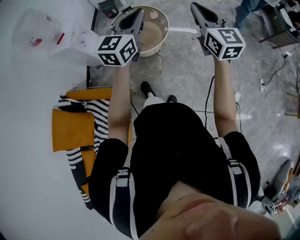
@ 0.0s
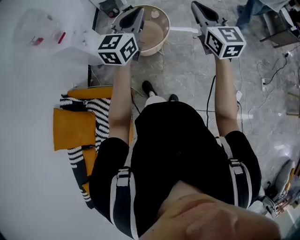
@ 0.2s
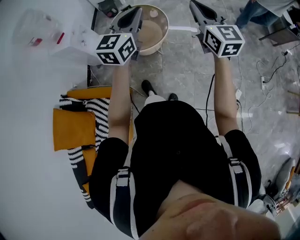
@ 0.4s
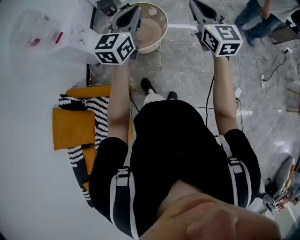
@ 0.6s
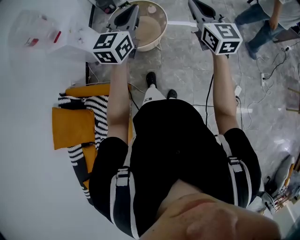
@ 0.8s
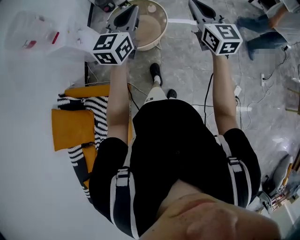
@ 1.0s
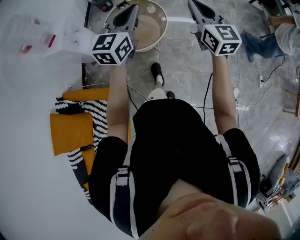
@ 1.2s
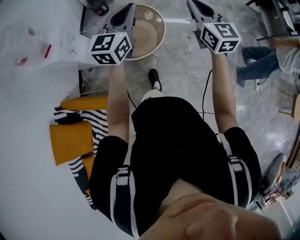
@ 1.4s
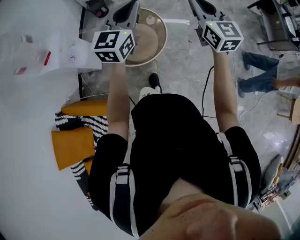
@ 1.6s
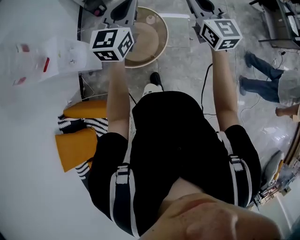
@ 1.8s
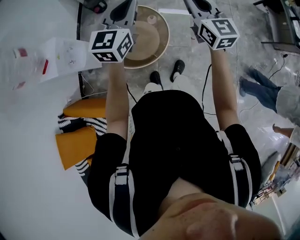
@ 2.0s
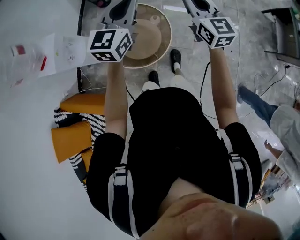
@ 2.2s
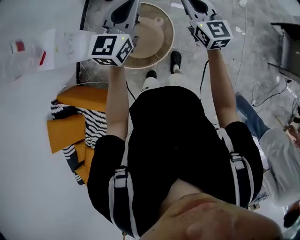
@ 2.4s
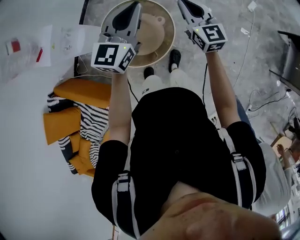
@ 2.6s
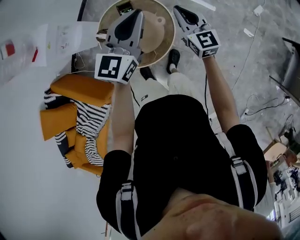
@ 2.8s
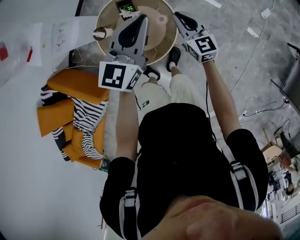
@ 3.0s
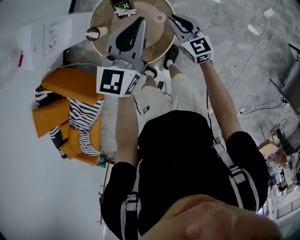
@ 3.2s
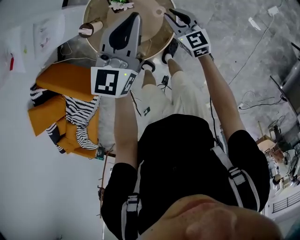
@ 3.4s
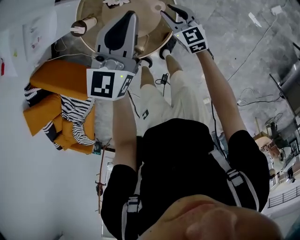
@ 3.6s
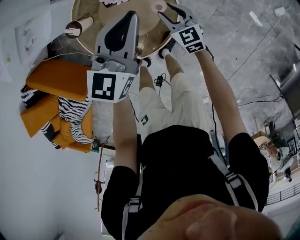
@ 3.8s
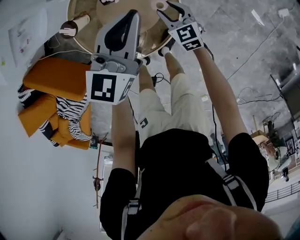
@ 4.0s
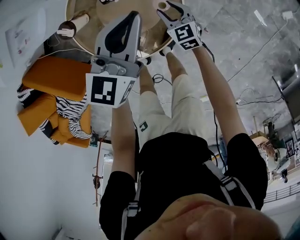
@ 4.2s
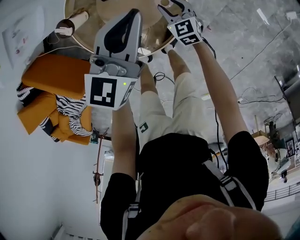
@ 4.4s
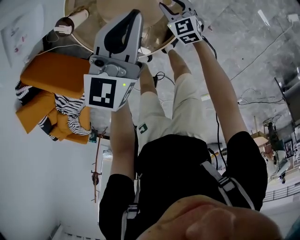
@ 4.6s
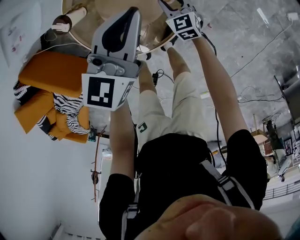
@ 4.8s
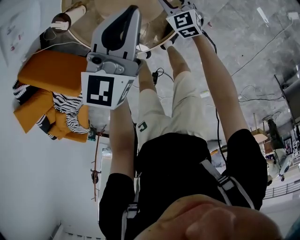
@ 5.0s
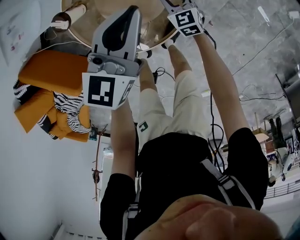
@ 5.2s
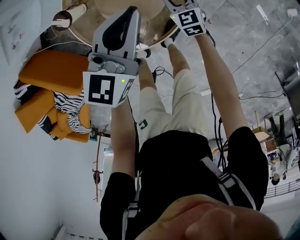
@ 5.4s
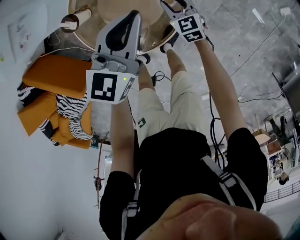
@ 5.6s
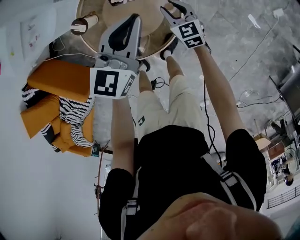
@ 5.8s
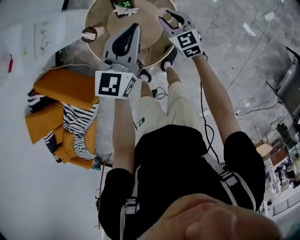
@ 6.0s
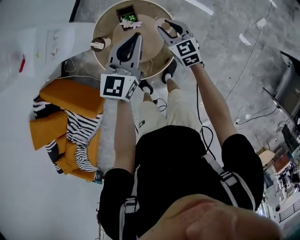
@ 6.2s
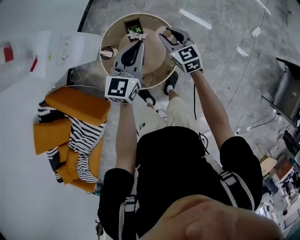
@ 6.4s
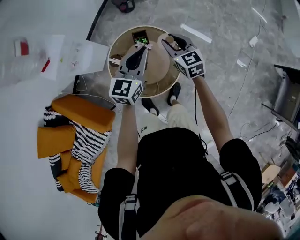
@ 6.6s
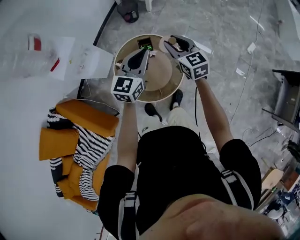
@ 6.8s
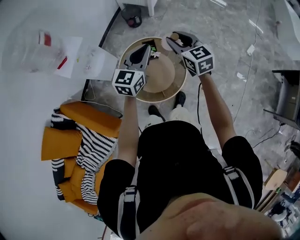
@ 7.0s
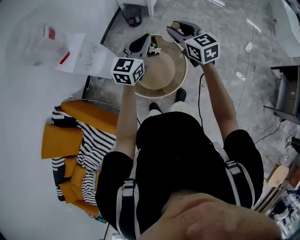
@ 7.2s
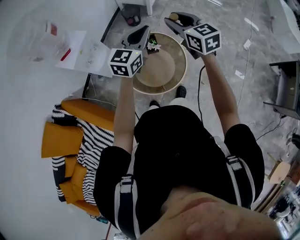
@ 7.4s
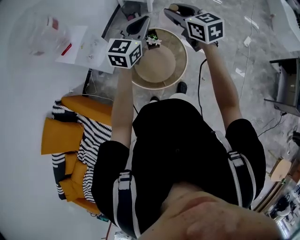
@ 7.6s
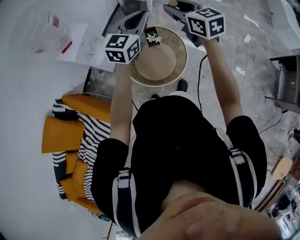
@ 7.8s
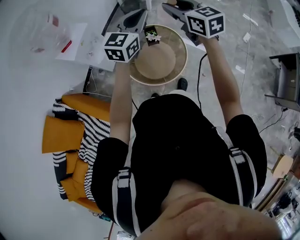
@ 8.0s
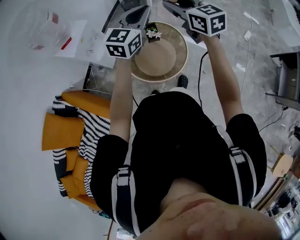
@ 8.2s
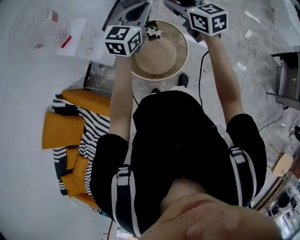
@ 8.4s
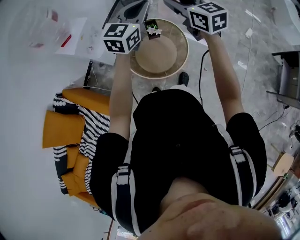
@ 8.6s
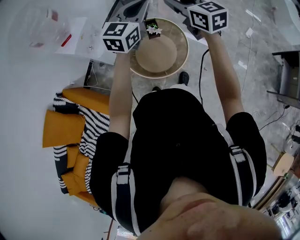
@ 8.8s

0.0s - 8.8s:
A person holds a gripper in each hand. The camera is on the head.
0.0s - 1.4s: The grippers both shift forward by approximately 20 cm.
1.4s - 3.0s: The left gripper changes place by about 40 cm, and swivels roughly 20 degrees. Meanwhile the right gripper moves about 50 cm, and rotates about 40 degrees.
3.0s - 4.4s: Both grippers move downward, some 30 cm. The right gripper turns by some 30 degrees, and opens up.
4.4s - 5.8s: The right gripper shifts roughly 10 cm upward. Meanwhile the left gripper shifts some 5 cm upward.
5.8s - 7.4s: The right gripper travels upward by about 50 cm. Meanwhile the left gripper travels upward and to the left by approximately 35 cm.
7.4s - 8.8s: The right gripper changes place by some 5 cm. The left gripper moves upward, approximately 5 cm.

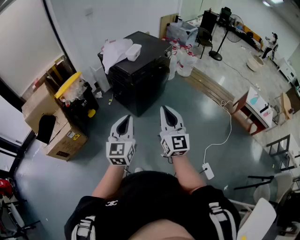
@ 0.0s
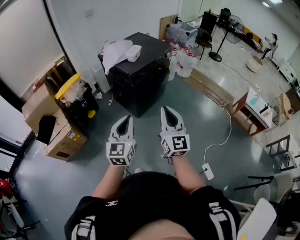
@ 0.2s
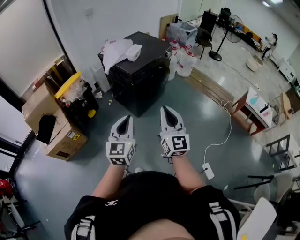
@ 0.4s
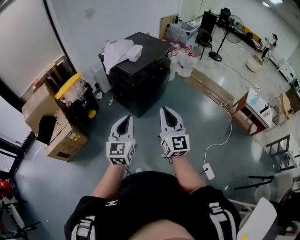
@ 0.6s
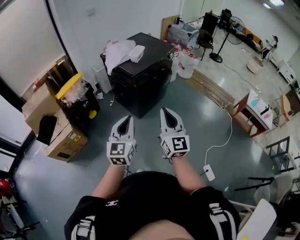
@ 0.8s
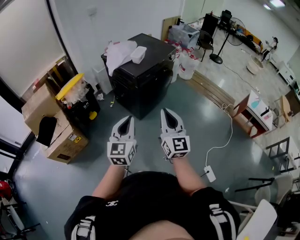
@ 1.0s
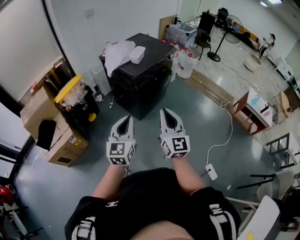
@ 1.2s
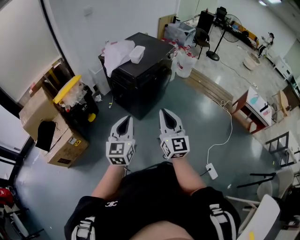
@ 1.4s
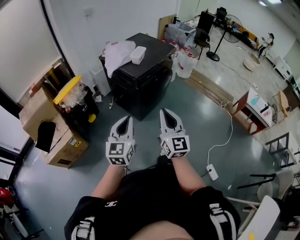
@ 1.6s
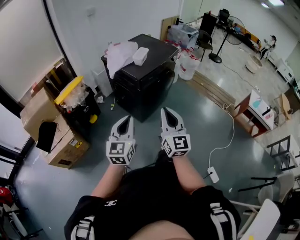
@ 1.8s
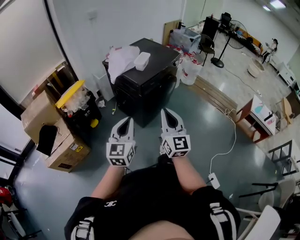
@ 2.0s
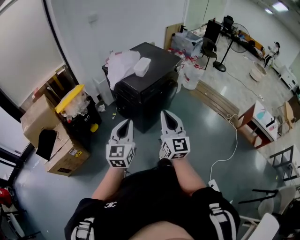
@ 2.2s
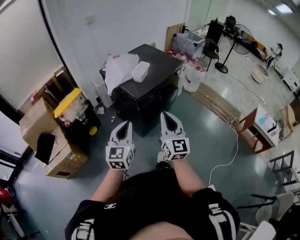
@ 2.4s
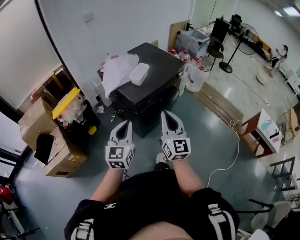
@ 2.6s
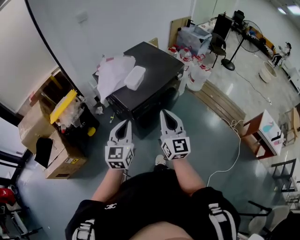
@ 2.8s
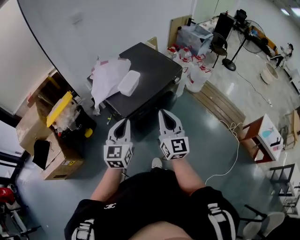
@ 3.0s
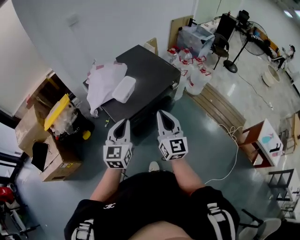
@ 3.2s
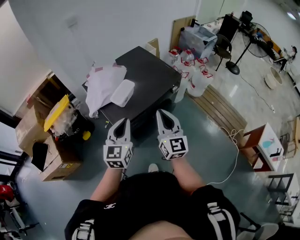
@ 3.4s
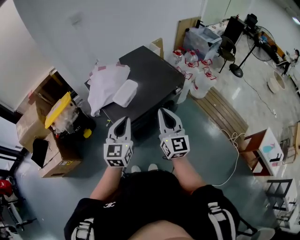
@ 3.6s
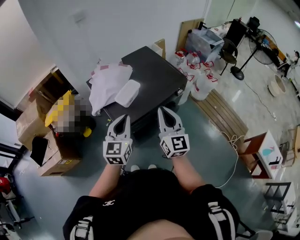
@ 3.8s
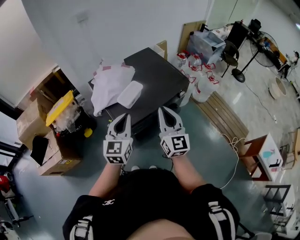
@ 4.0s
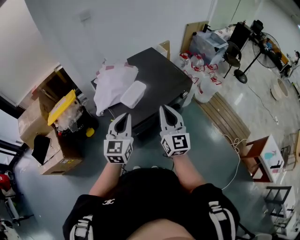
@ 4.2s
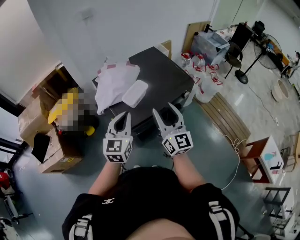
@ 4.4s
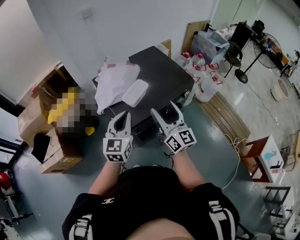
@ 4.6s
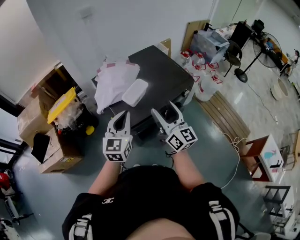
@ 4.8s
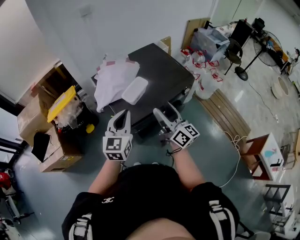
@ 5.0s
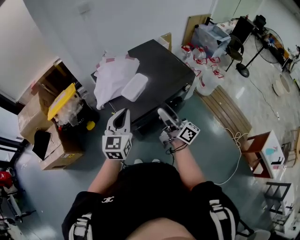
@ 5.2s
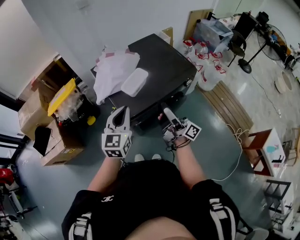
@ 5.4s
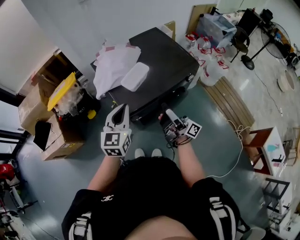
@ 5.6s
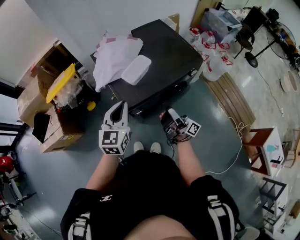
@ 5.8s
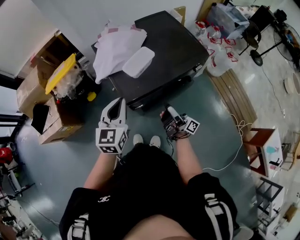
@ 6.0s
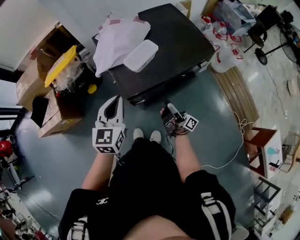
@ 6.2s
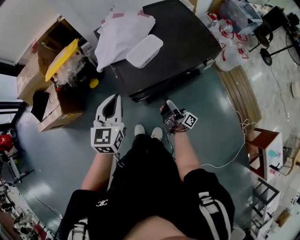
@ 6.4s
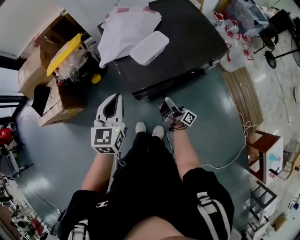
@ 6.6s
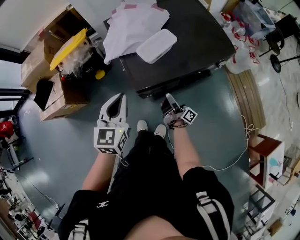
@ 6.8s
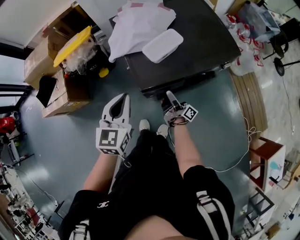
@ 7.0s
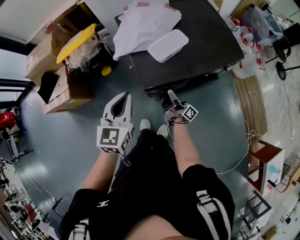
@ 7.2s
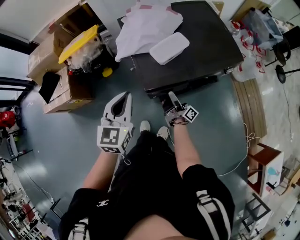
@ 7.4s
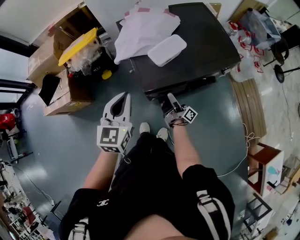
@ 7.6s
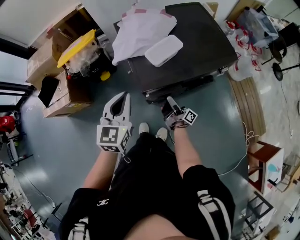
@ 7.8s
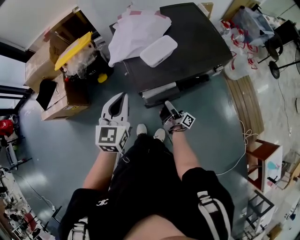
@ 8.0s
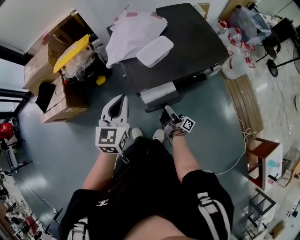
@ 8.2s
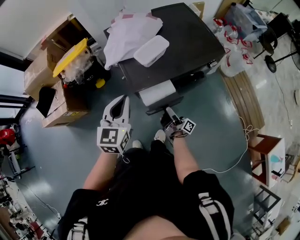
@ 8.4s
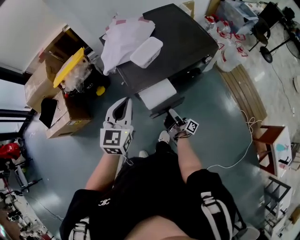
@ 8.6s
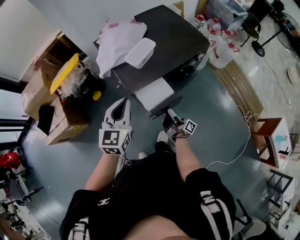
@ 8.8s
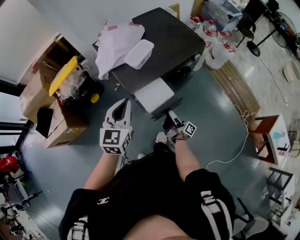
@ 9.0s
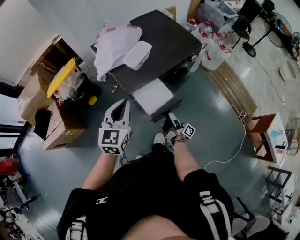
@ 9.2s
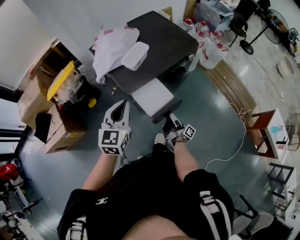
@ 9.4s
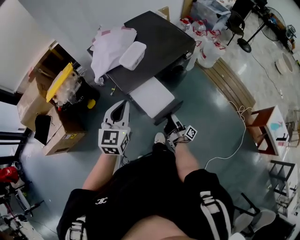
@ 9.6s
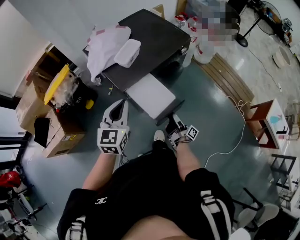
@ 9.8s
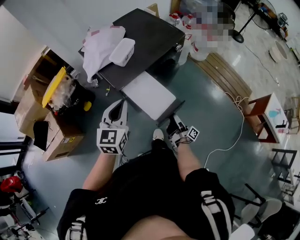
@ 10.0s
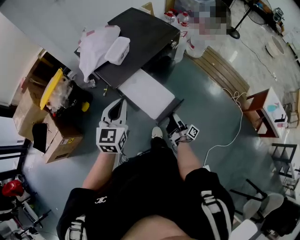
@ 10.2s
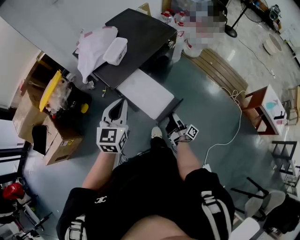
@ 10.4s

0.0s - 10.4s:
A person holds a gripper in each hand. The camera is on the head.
0.0s - 1.4s: Both grippers travel together to the left, approximately 5 cm.
1.4s - 3.0s: The grippers both shift forward by roughly 40 cm.
3.0s - 4.4s: The two grippers go approximately 15 cm forward. The right gripper opens up.
4.4s - 6.0s: The left gripper is displaced downward by some 5 cm. The right gripper is displaced downward by about 20 cm, rolls clockwise, seen from behind, by roughly 80 degrees, and opens its fingers.
6.0s - 7.4s: The right gripper travels downward, to the left and forward by some 15 cm. Meanwhile the left gripper travels to the left by about 5 cm.
7.4s - 9.0s: The left gripper is displaced backward by roughly 5 cm; the right gripper goes some 15 cm backward.
9.0s - 10.4s: The right gripper moves backward and to the right, about 15 cm, while the left gripper shifts some 5 cm backward.

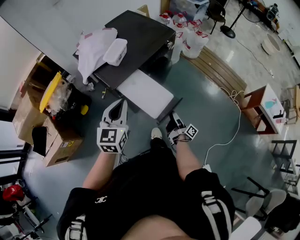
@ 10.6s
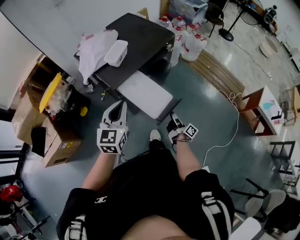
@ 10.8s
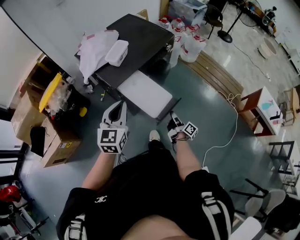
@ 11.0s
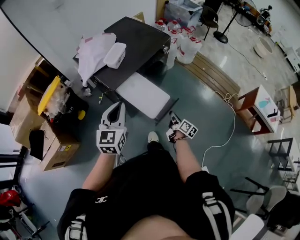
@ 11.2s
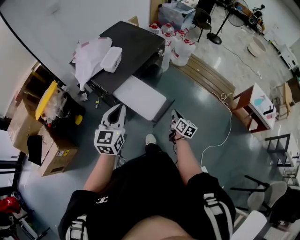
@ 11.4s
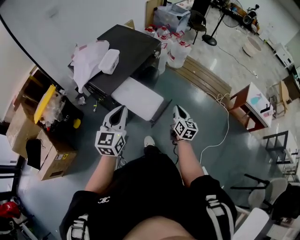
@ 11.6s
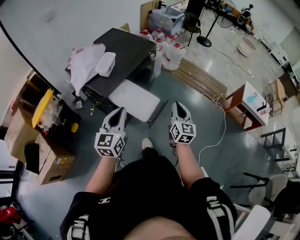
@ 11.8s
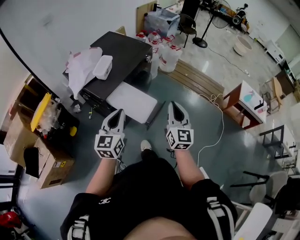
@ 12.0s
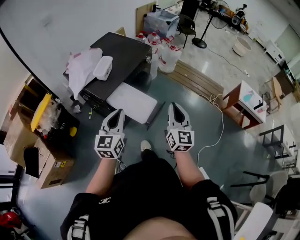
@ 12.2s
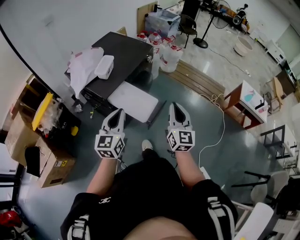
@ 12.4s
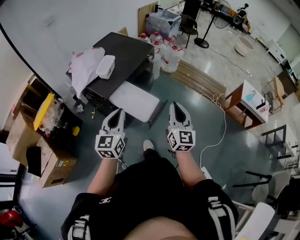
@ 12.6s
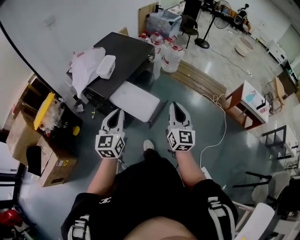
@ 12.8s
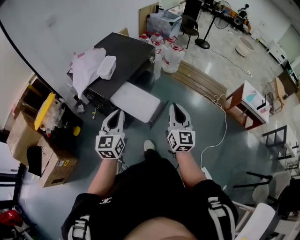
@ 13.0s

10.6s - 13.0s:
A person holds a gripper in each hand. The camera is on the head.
10.6s - 11.8s: The left gripper shifts about 5 cm backward, while the right gripper shifts some 25 cm upward, rolls counterclockwise, seen from behind, by about 80 degrees, and closes up.
11.8s - 13.0s: The right gripper goes some 10 cm upward and backward.

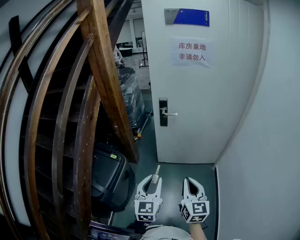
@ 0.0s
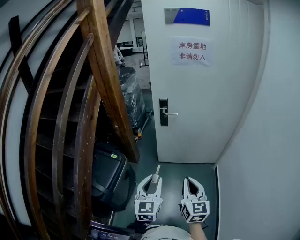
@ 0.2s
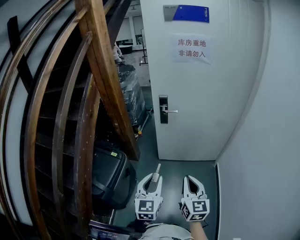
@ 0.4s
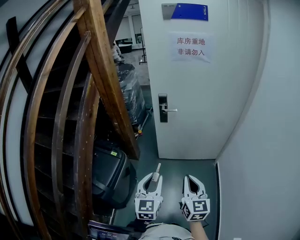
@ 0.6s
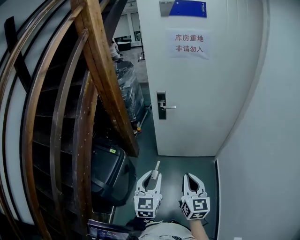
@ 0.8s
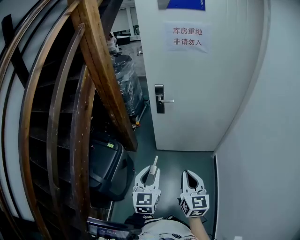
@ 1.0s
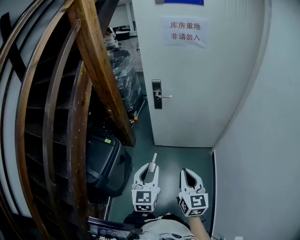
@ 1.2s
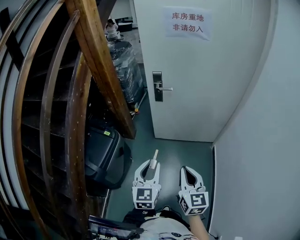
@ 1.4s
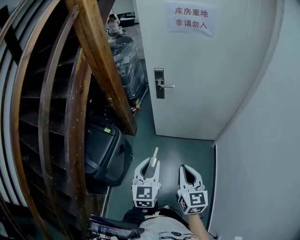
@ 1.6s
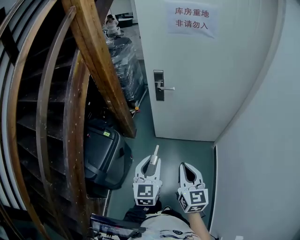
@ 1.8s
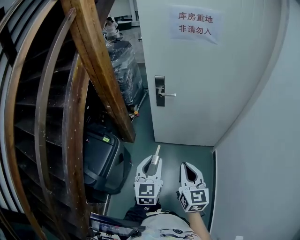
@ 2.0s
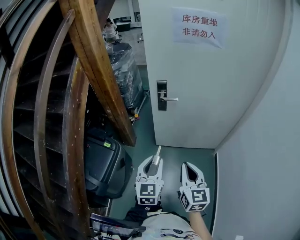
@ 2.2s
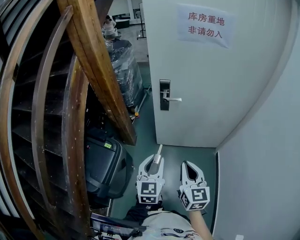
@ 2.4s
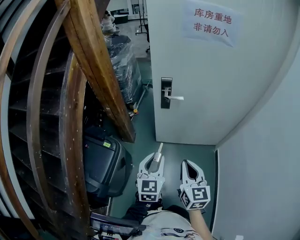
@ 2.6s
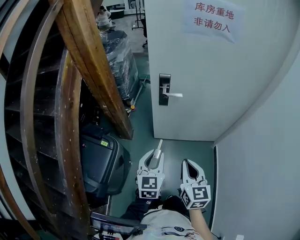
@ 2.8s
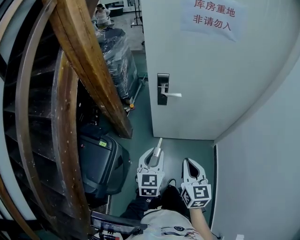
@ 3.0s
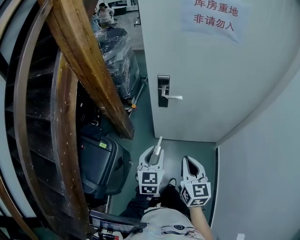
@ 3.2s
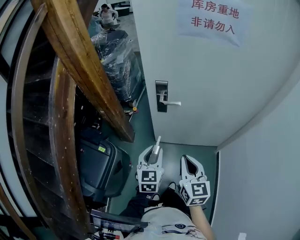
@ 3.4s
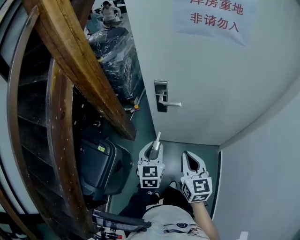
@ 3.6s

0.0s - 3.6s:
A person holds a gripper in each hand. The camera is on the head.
0.0s - 1.8s: The left gripper shifts roughly 5 cm forward, while the right gripper changes place by about 5 cm.
1.8s - 3.6s: The two grippers go approximately 30 cm forward.
